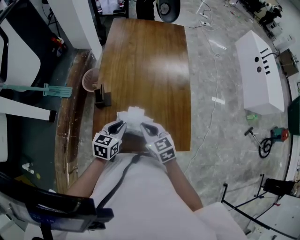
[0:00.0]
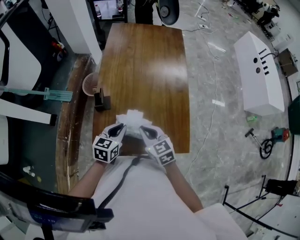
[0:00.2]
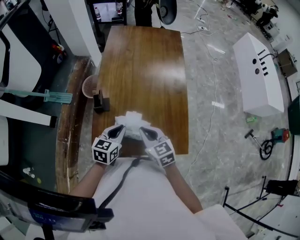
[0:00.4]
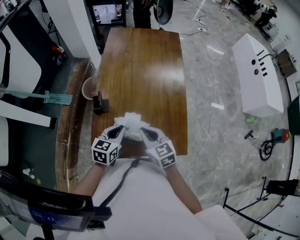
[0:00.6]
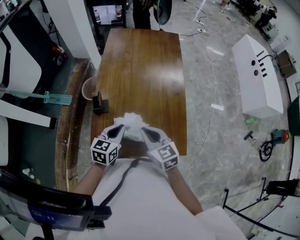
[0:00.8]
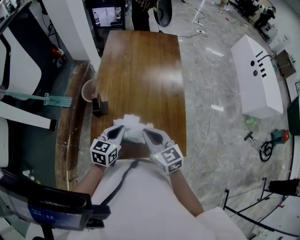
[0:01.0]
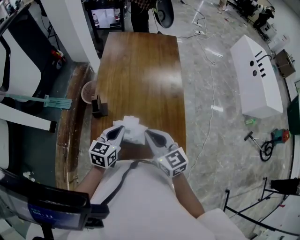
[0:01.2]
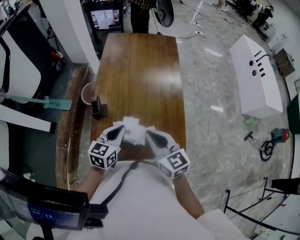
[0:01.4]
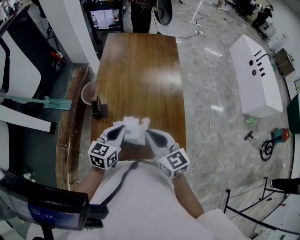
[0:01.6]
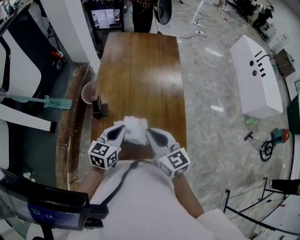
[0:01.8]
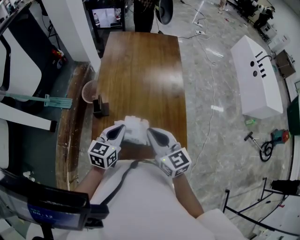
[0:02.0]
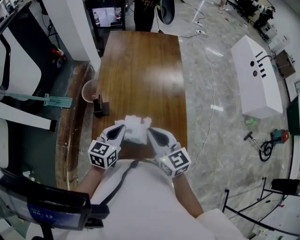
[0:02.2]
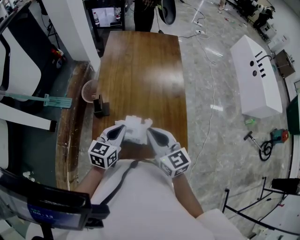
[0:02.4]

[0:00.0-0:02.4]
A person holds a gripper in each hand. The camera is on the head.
0:00.0 to 0:01.2: The left gripper heads upward, covering about 5 cm. The right gripper shifts roughly 10 cm upward.
0:01.2 to 0:02.4: The grippers stay close to where they were, moving slightly.

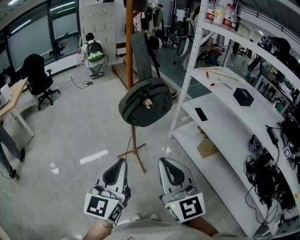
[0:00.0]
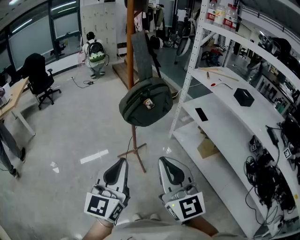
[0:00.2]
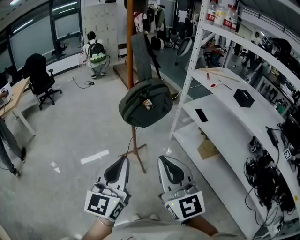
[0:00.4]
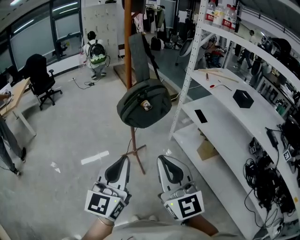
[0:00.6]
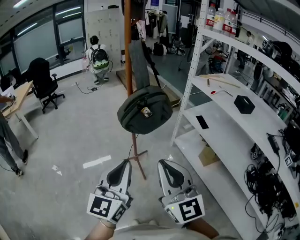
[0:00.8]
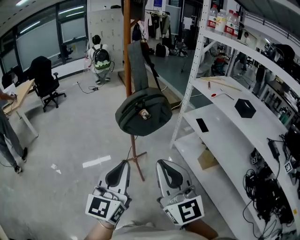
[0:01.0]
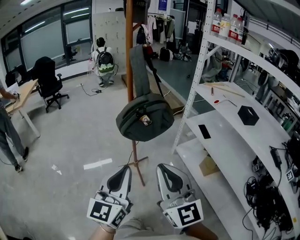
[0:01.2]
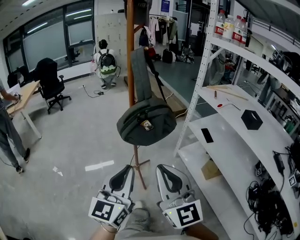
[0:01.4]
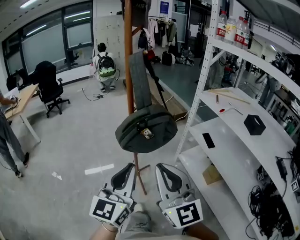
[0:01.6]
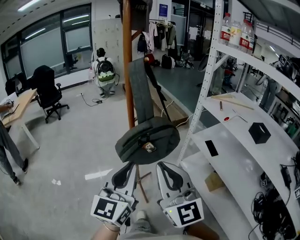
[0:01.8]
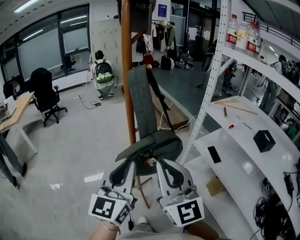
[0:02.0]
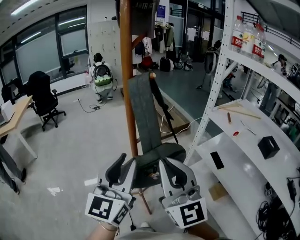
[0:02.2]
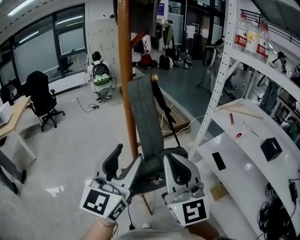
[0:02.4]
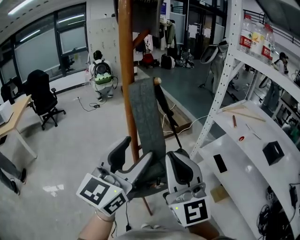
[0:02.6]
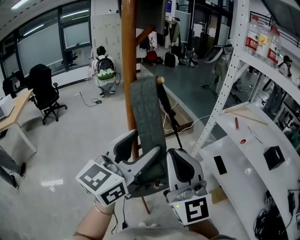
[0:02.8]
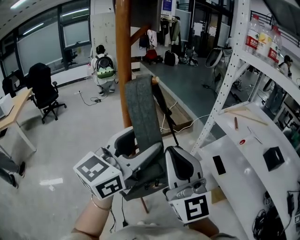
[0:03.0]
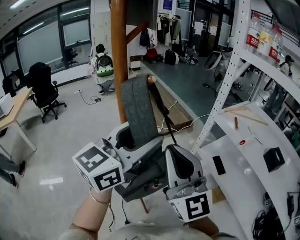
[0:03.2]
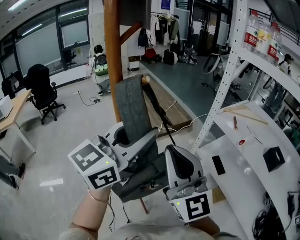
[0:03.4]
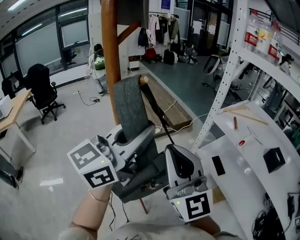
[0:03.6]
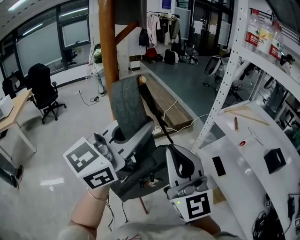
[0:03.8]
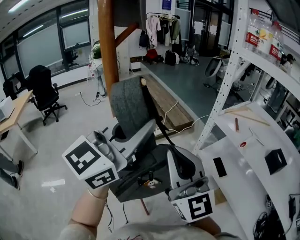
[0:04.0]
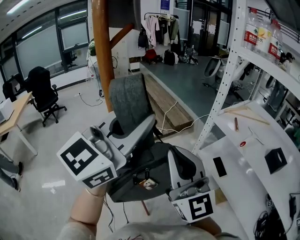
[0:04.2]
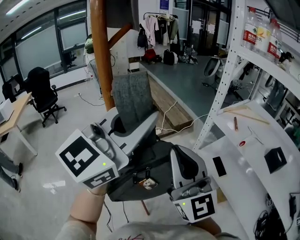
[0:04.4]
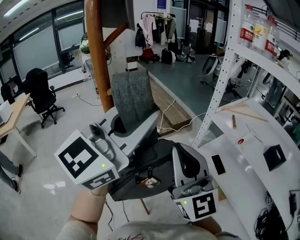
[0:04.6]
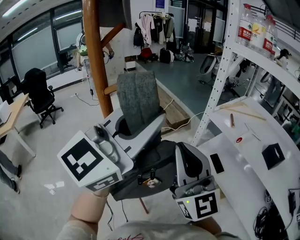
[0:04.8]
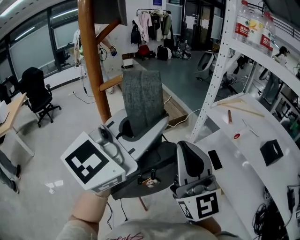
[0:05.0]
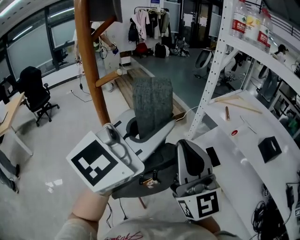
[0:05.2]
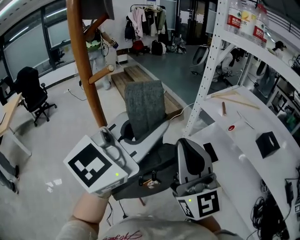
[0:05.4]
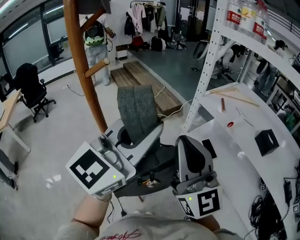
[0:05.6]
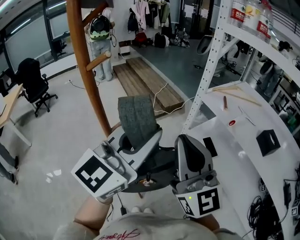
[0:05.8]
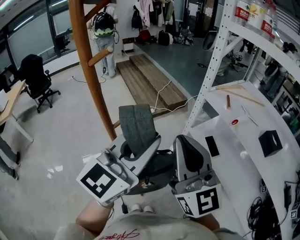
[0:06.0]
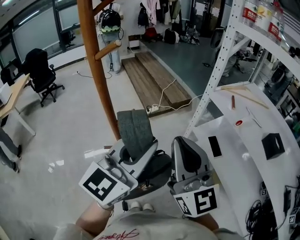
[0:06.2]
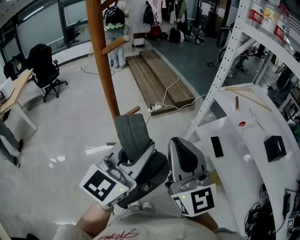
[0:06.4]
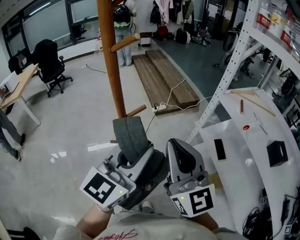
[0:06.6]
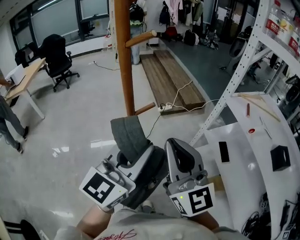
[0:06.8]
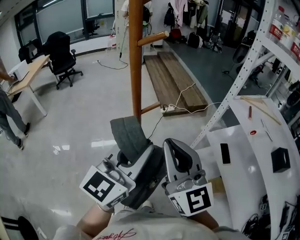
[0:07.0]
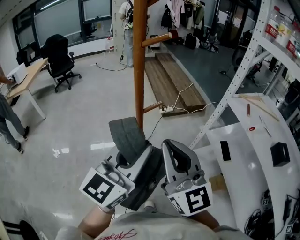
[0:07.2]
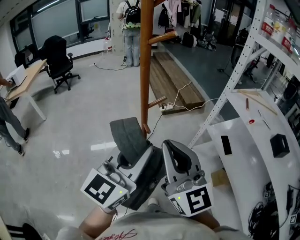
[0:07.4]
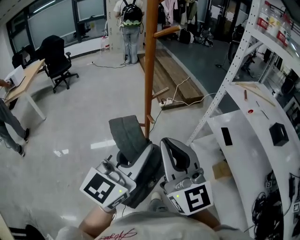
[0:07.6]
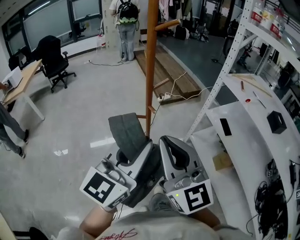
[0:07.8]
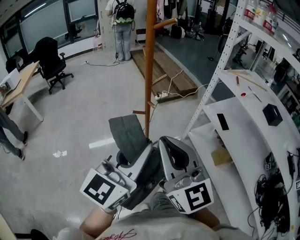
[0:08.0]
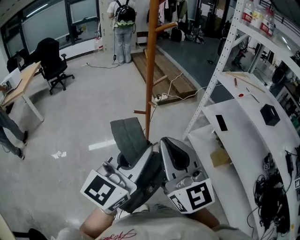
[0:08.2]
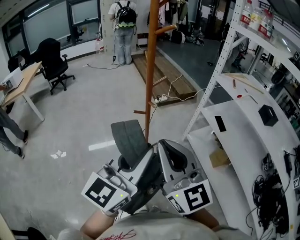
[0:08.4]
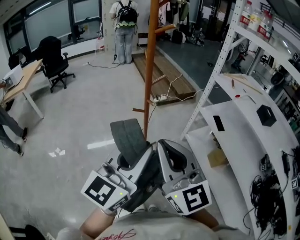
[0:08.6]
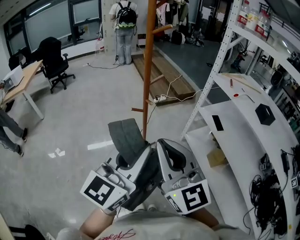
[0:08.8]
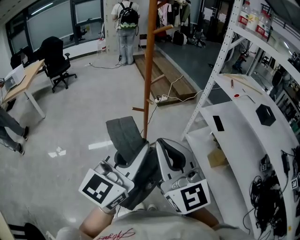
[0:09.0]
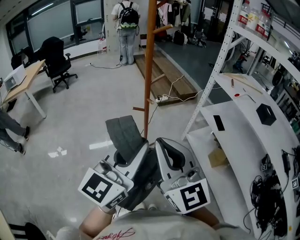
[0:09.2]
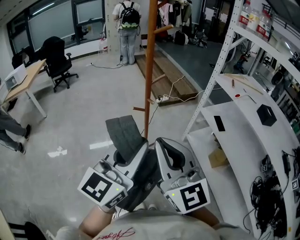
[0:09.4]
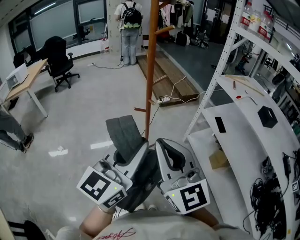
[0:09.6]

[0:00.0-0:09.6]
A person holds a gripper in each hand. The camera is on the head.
0:00.0 to 0:01.6: The left gripper moves forward and to the right, about 15 cm; the right gripper is displaced forward by approximately 10 cm.
0:01.6 to 0:03.2: The right gripper goes approximately 25 cm forward; the left gripper heads forward and upward, covering roughly 30 cm, rotates some 30 degrees, and opens its fingers.
0:03.2 to 0:04.8: The right gripper moves to the right, approximately 5 cm, while the left gripper is displaced upward and to the right by roughly 10 cm, and closes up.
0:04.8 to 0:06.4: The right gripper is displaced downward by approximately 5 cm, while the left gripper heads downward, covering roughly 15 cm, and turns by roughly 20 degrees.
0:06.4 to 0:08.0: The grippers both shift backward and to the left by roughly 25 cm.
0:08.0 to 0:09.6: The two grippers go approximately 5 cm backward.

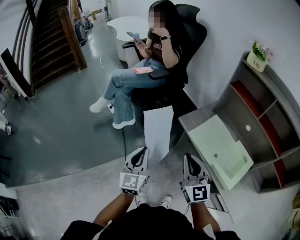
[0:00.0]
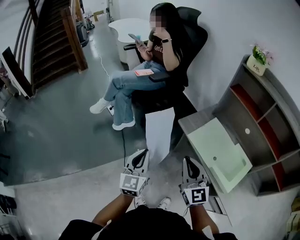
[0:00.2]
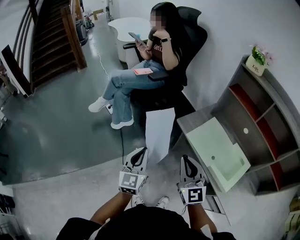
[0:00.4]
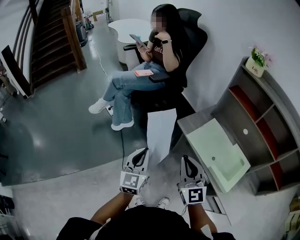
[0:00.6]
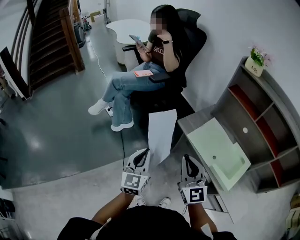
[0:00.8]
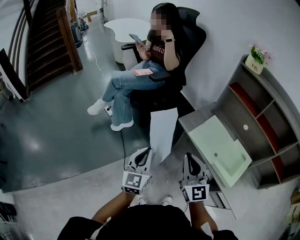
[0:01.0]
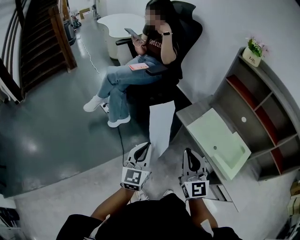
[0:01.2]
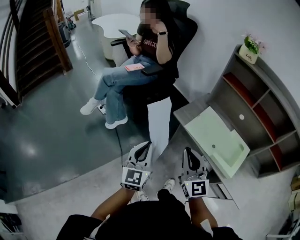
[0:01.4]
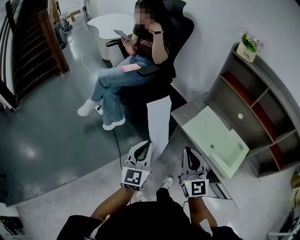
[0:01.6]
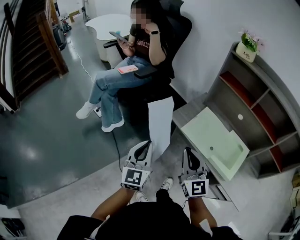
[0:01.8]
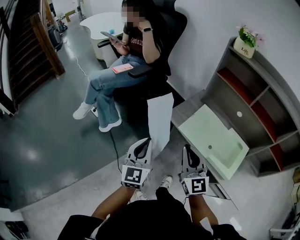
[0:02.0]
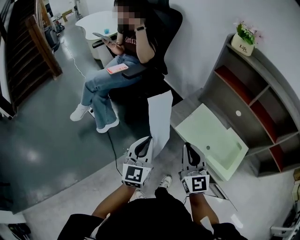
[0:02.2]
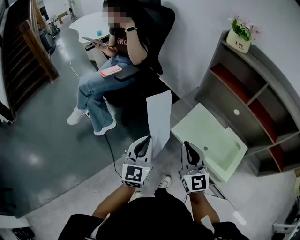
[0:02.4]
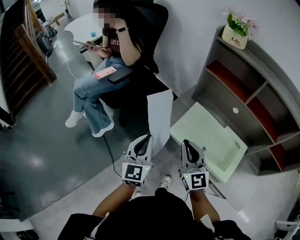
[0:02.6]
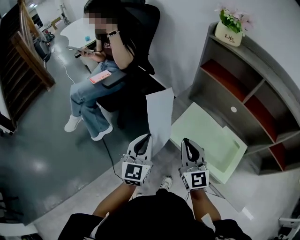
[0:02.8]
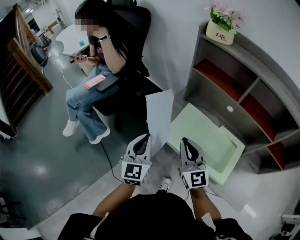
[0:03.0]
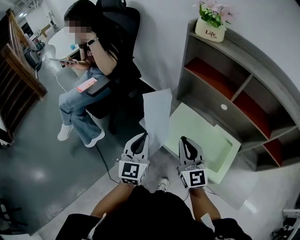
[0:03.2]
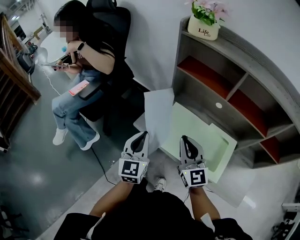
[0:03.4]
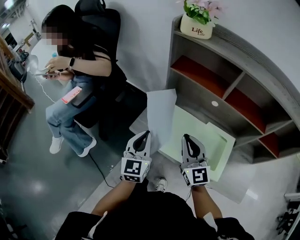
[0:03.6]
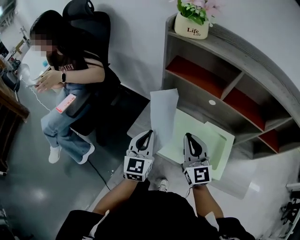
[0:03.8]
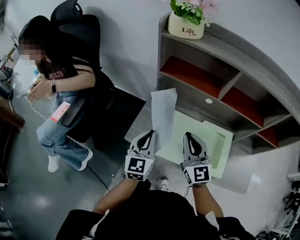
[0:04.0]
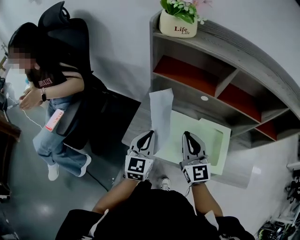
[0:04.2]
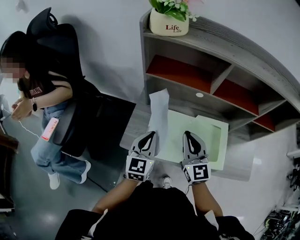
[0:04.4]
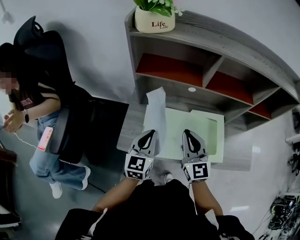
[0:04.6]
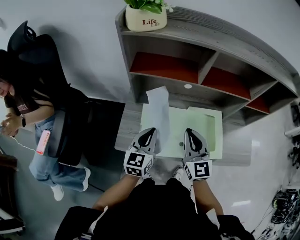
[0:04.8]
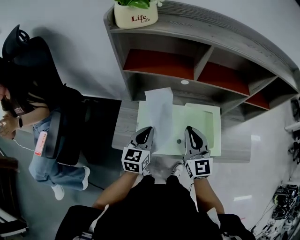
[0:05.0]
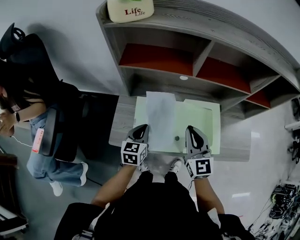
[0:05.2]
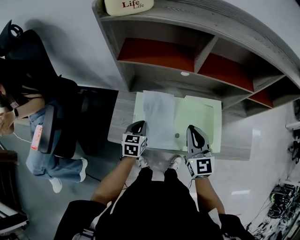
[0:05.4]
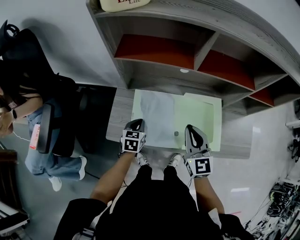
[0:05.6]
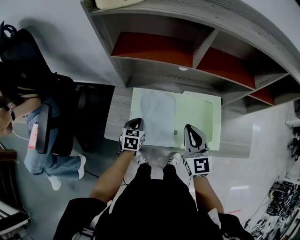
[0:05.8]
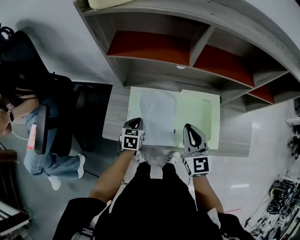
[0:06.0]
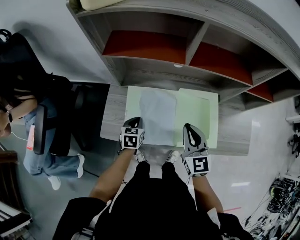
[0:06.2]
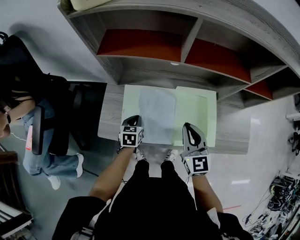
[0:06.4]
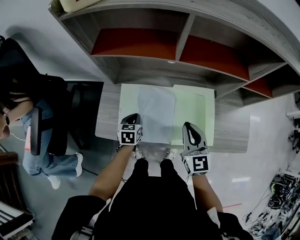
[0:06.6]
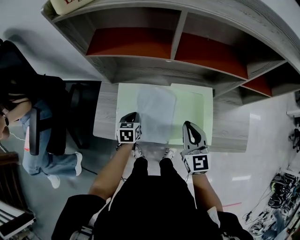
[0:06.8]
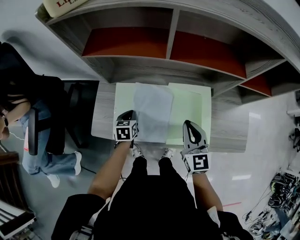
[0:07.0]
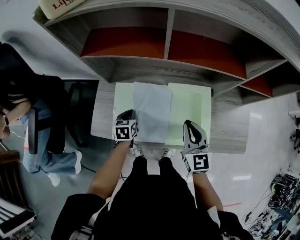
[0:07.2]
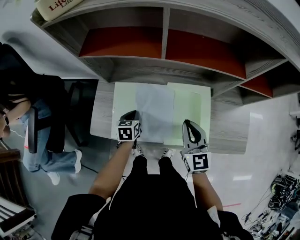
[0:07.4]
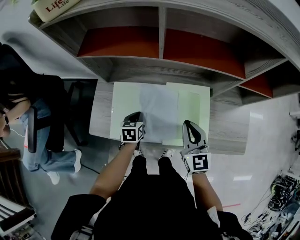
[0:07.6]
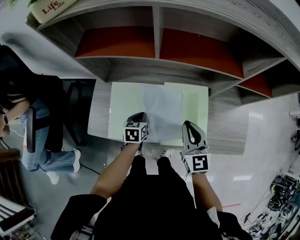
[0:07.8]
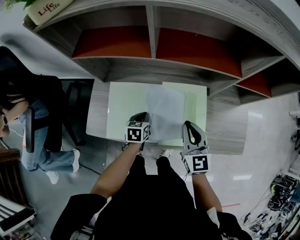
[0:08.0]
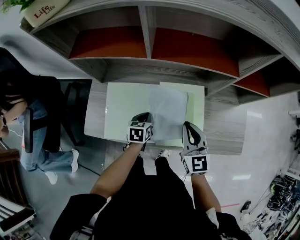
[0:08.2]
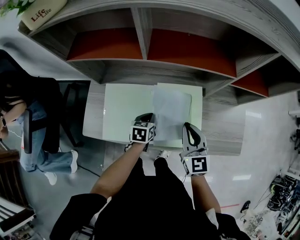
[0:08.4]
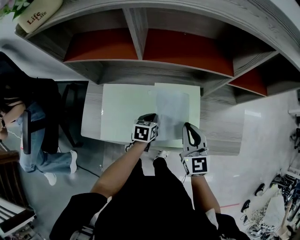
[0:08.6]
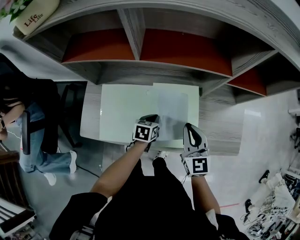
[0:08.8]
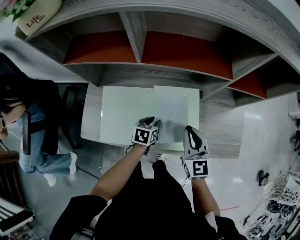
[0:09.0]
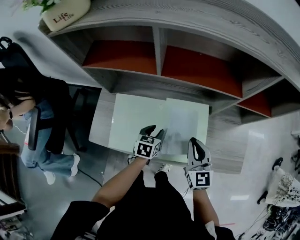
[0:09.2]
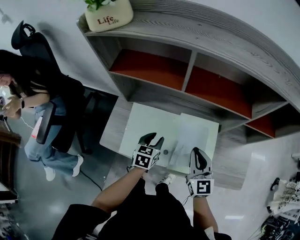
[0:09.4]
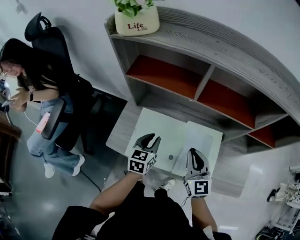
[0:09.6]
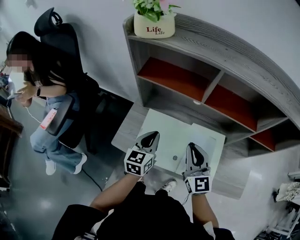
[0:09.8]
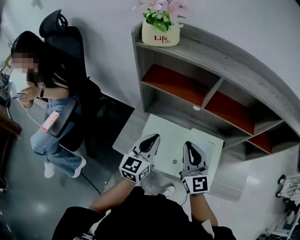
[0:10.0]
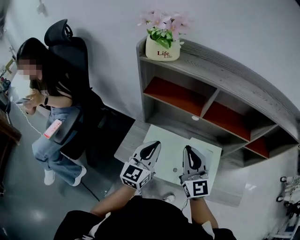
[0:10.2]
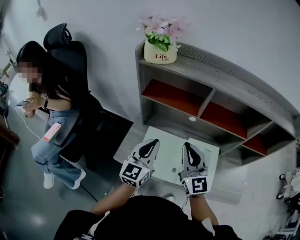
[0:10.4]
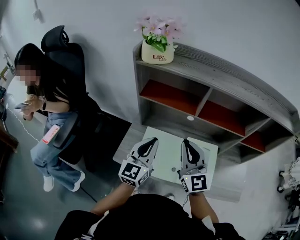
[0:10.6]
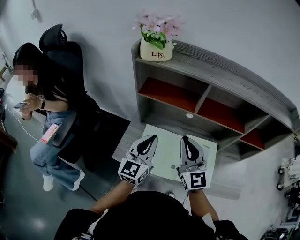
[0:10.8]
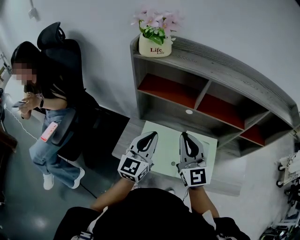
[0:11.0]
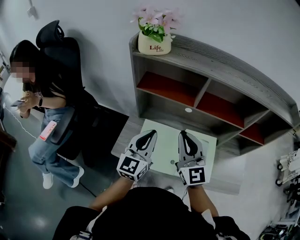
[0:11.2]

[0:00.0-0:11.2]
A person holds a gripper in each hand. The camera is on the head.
0:00.0 to 0:01.6: The grippers make only small movements.
0:01.6 to 0:03.2: The grippers both shift to the right and forward by about 25 cm.
0:03.2 to 0:04.8: The left gripper changes place by some 20 cm, and changes its angle by about 40 degrees. Meanwhile the right gripper shifts by some 15 cm, and rotates roughly 40 degrees.
0:04.8 to 0:06.4: The left gripper moves downward, roughly 20 cm, and tilts its fingers roughly 30 degrees downward. The right gripper is displaced to the right and downward by approximately 10 cm.
0:06.4 to 0:08.0: Both grippers travel together to the right, about 10 cm.
0:08.0 to 0:09.6: The left gripper is displaced upward and to the left by about 15 cm, changes its angle by roughly 20 degrees, and opens. Meanwhile the right gripper goes roughly 10 cm to the left and upward.
0:09.6 to 0:11.2: The left gripper is displaced upward by roughly 20 cm, tips its fingers upward by some 30 degrees, and closes. The right gripper goes some 20 cm upward and to the left.
